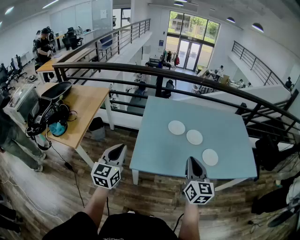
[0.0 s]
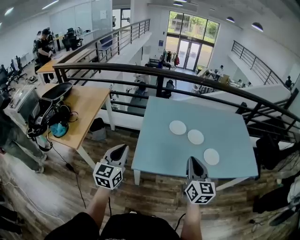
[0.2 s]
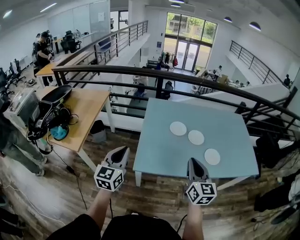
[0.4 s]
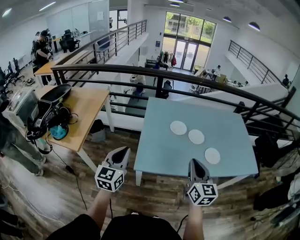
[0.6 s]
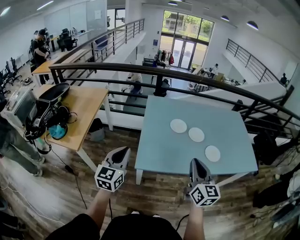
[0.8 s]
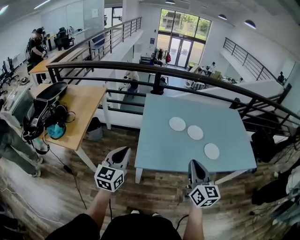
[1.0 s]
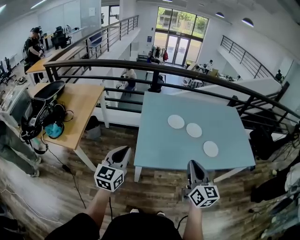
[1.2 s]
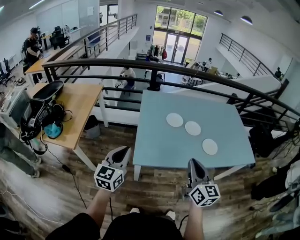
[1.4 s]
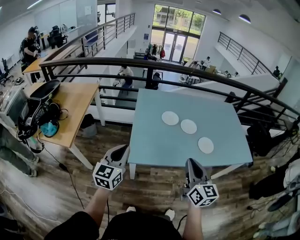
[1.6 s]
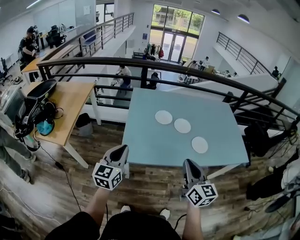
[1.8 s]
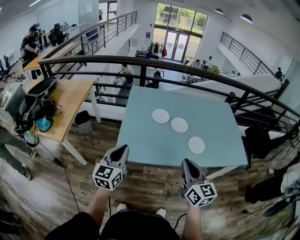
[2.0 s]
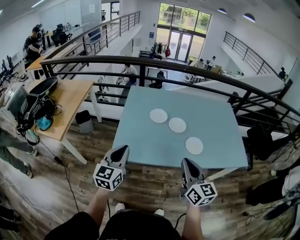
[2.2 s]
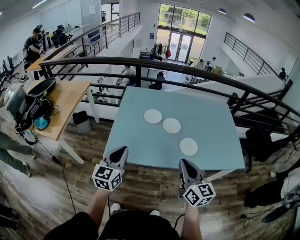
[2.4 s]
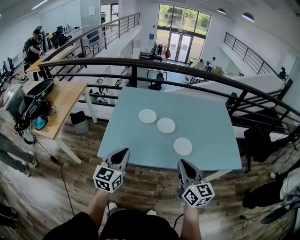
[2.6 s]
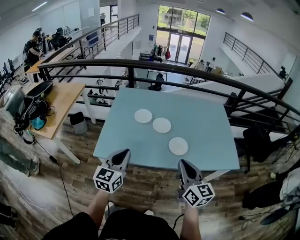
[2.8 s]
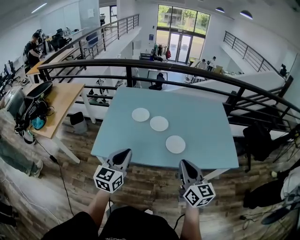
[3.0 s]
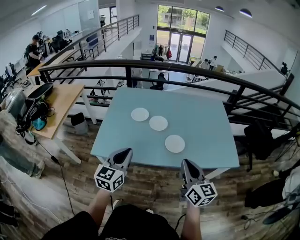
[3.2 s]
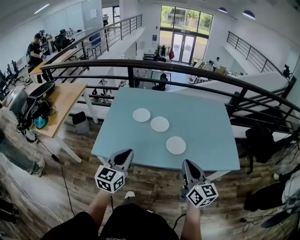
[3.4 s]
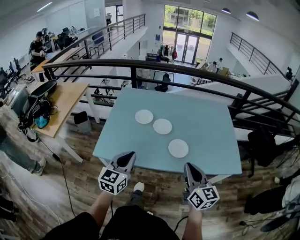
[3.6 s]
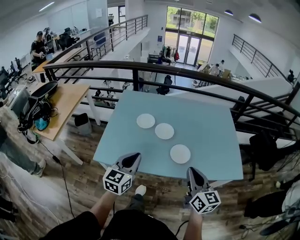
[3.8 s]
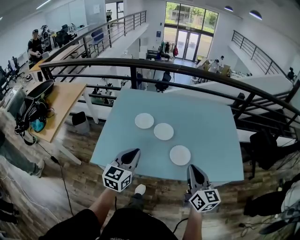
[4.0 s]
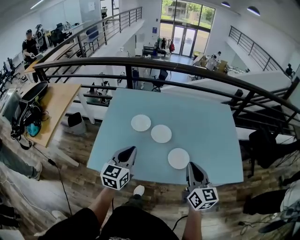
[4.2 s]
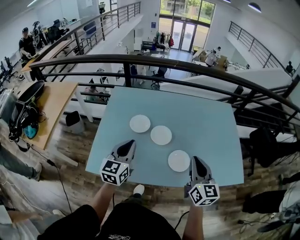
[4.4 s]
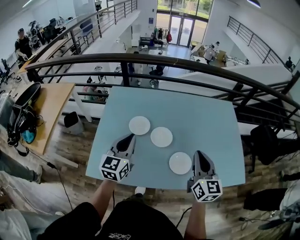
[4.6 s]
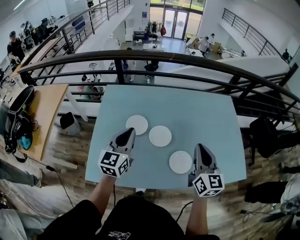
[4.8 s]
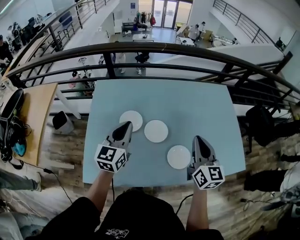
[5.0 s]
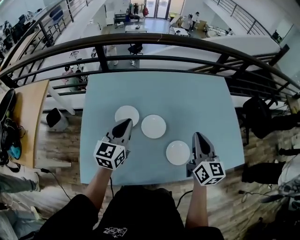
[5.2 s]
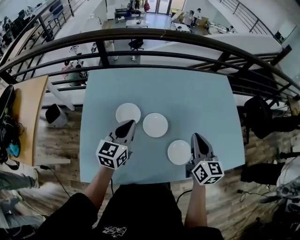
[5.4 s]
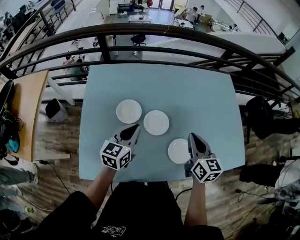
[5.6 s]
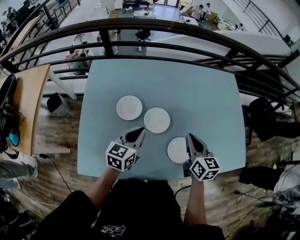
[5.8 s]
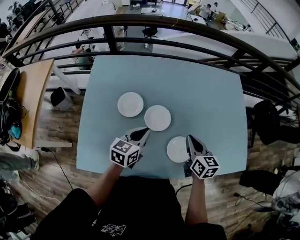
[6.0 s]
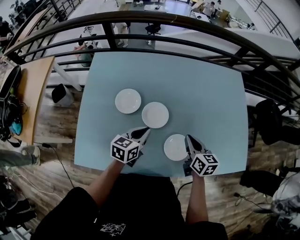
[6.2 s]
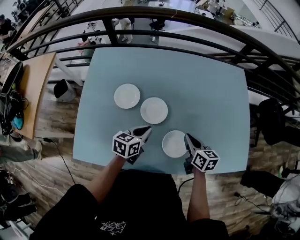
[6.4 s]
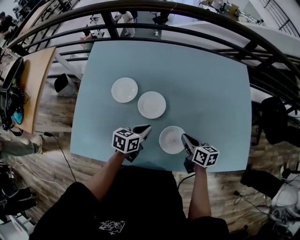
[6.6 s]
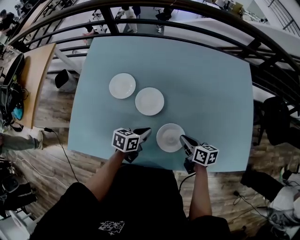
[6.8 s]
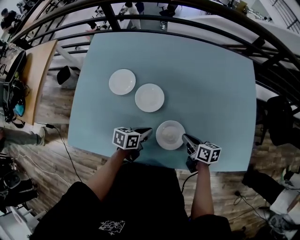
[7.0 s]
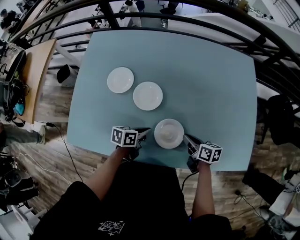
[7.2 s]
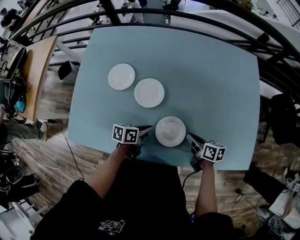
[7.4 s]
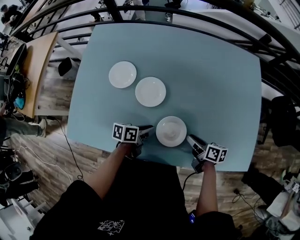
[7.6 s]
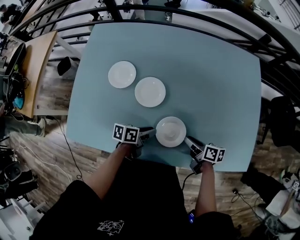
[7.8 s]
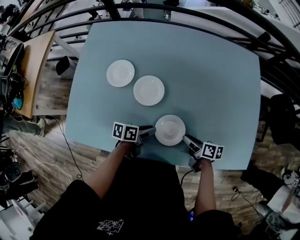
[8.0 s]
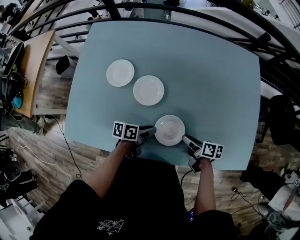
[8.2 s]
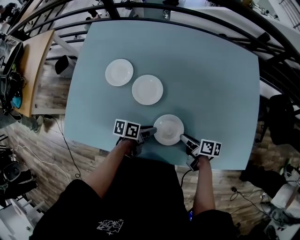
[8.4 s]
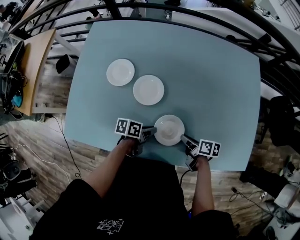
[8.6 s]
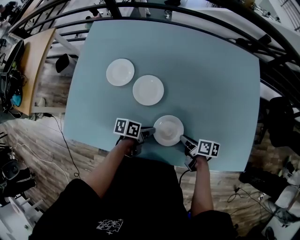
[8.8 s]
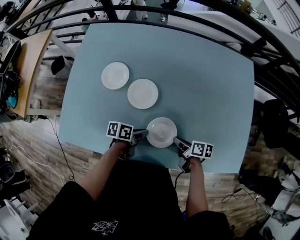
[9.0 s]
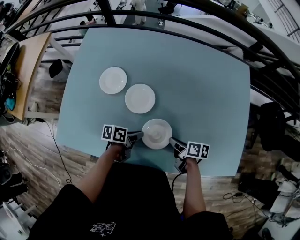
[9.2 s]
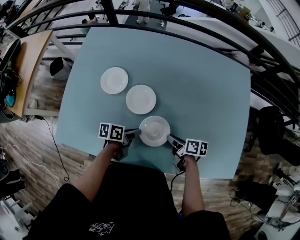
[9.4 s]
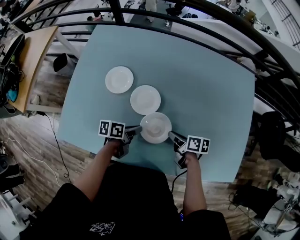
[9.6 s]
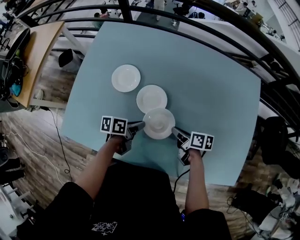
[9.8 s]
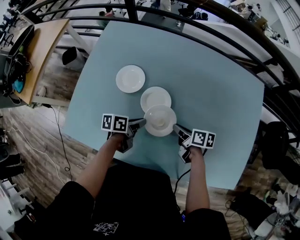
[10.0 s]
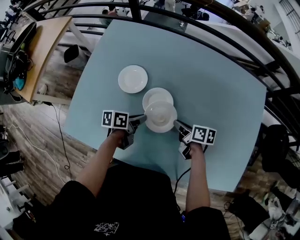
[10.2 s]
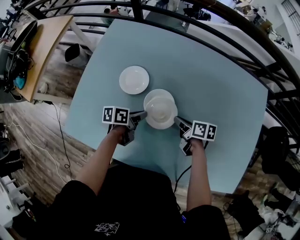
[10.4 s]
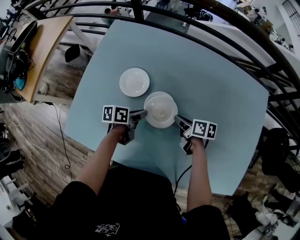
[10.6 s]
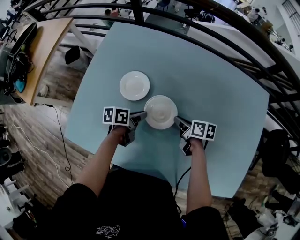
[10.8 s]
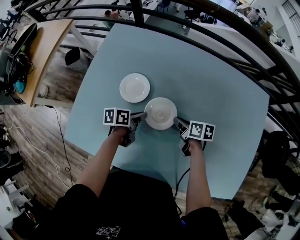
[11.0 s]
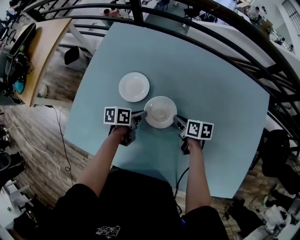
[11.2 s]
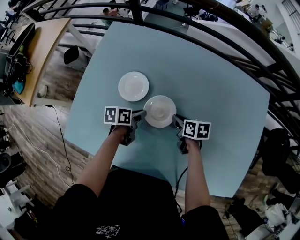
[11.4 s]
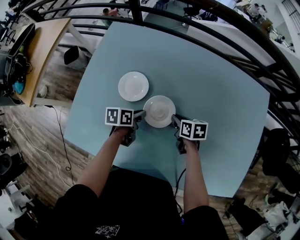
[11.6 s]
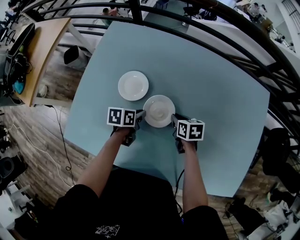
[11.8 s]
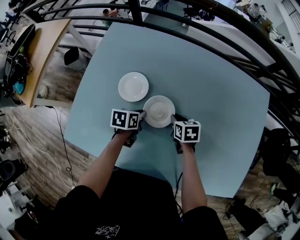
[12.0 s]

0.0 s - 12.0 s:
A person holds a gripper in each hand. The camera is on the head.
0.0 s - 1.6 s: The right gripper shifts approximately 5 cm backward.
1.6 s - 3.0 s: The two grippers go roughly 30 cm to the right.
3.0 s - 4.4 s: The grippers both shift forward by some 20 cm.
4.4 s - 6.0 s: The left gripper shifts approximately 25 cm downward, forward and to the right, and changes its angle by roughly 30 degrees, while the right gripper shifts some 25 cm downward and forward, and rotates some 30 degrees.
6.0 s - 7.6 s: Both grippers move downward and to the right, approximately 20 cm. The right gripper rotates about 40 degrees, and opens its fingers; the left gripper changes its angle by approximately 40 degrees.
7.6 s - 9.0 s: The grippers move only a little.
9.0 s - 10.4 s: The right gripper moves approximately 20 cm. Meanwhile the left gripper shifts by approximately 15 cm.
10.4 s - 12.0 s: The left gripper rotates about 20 degrees; the right gripper changes place by roughly 5 cm, and changes its angle by about 30 degrees.

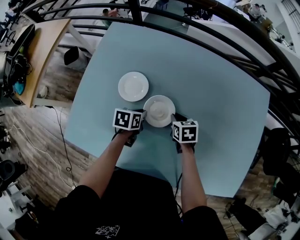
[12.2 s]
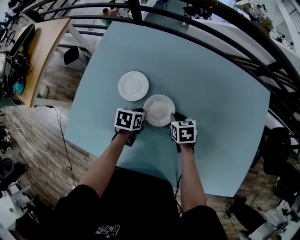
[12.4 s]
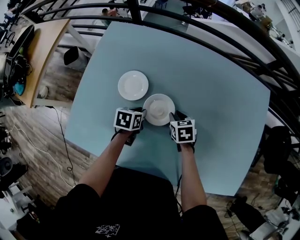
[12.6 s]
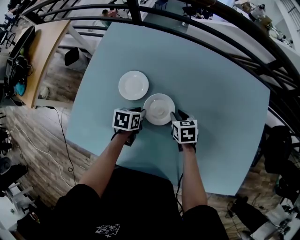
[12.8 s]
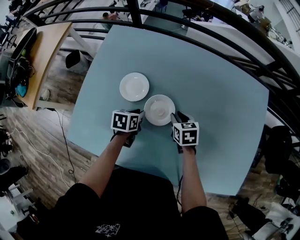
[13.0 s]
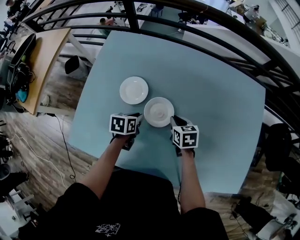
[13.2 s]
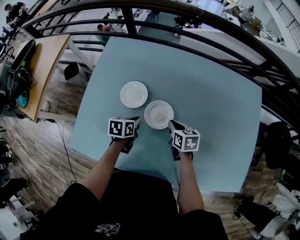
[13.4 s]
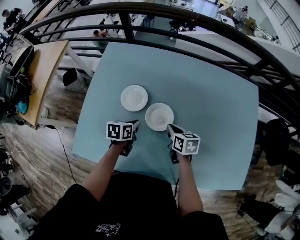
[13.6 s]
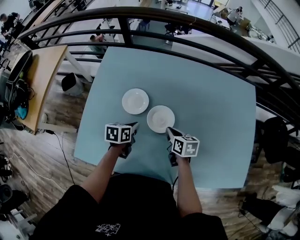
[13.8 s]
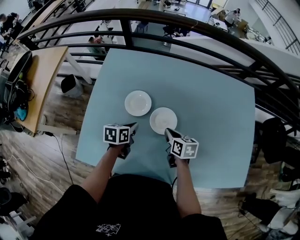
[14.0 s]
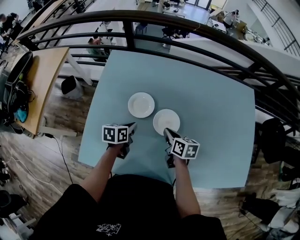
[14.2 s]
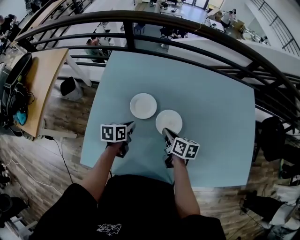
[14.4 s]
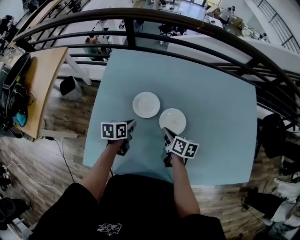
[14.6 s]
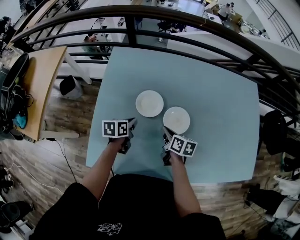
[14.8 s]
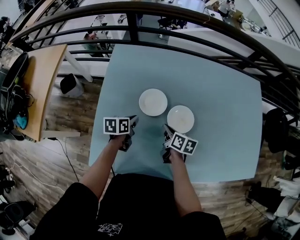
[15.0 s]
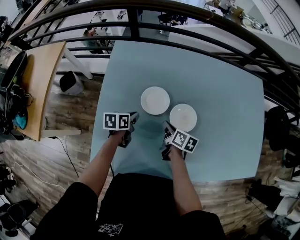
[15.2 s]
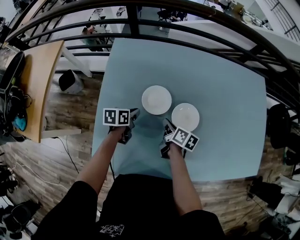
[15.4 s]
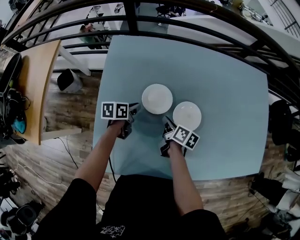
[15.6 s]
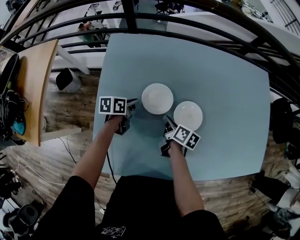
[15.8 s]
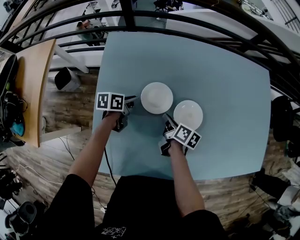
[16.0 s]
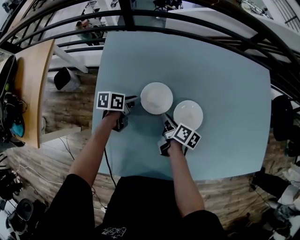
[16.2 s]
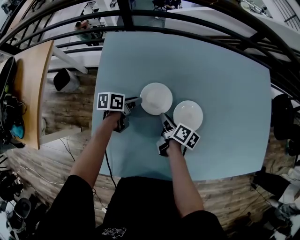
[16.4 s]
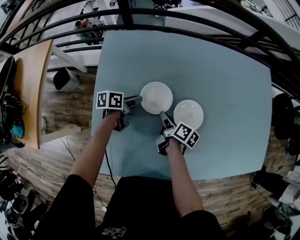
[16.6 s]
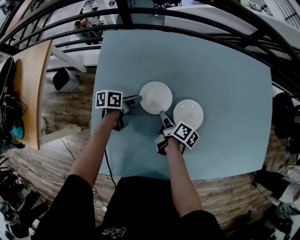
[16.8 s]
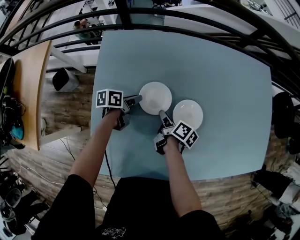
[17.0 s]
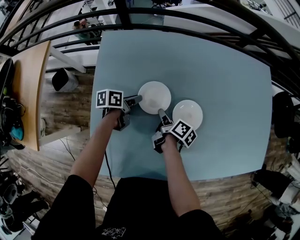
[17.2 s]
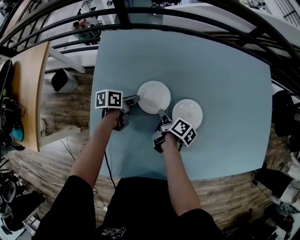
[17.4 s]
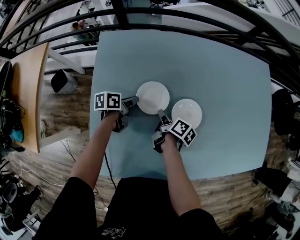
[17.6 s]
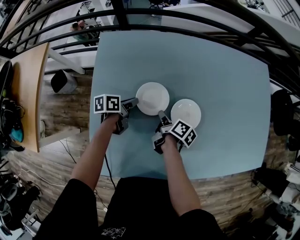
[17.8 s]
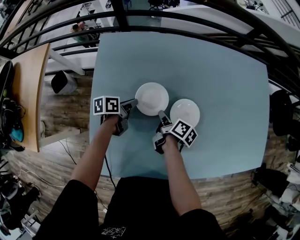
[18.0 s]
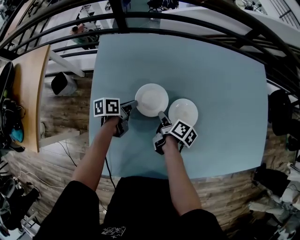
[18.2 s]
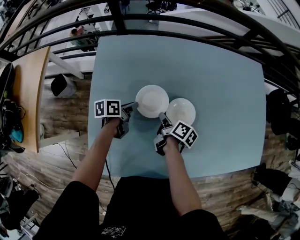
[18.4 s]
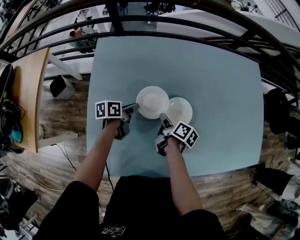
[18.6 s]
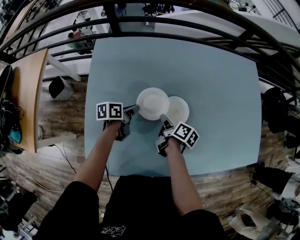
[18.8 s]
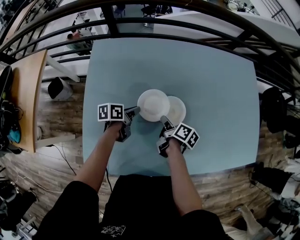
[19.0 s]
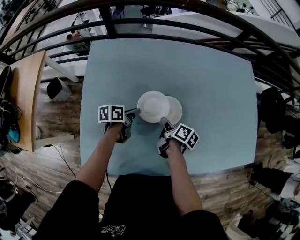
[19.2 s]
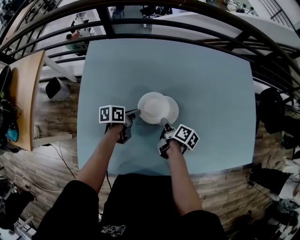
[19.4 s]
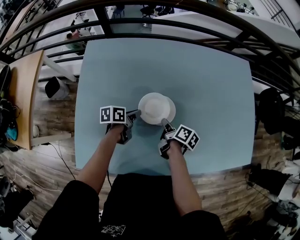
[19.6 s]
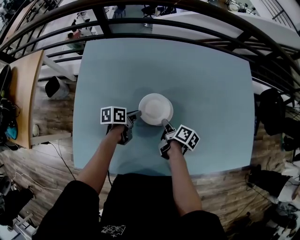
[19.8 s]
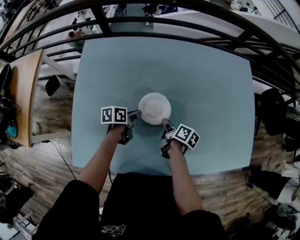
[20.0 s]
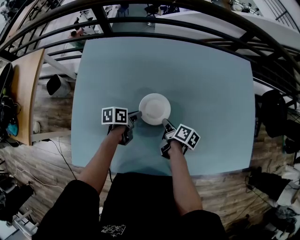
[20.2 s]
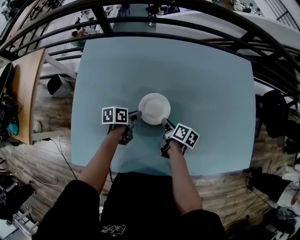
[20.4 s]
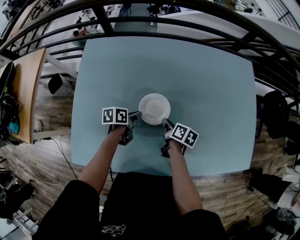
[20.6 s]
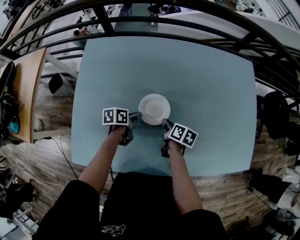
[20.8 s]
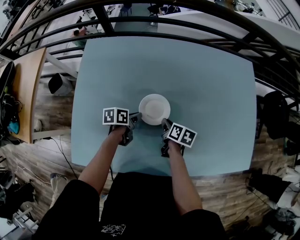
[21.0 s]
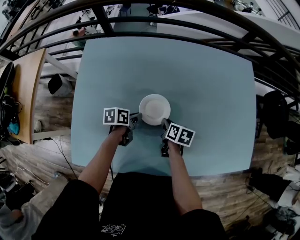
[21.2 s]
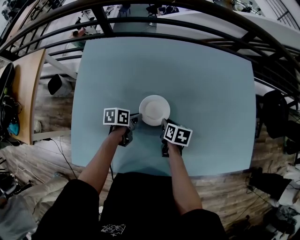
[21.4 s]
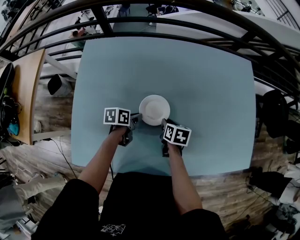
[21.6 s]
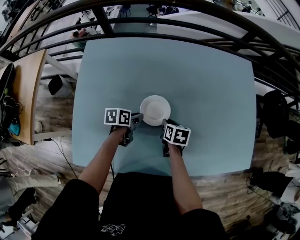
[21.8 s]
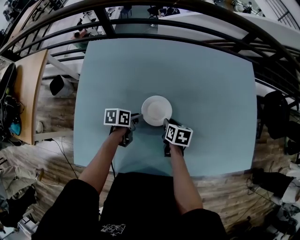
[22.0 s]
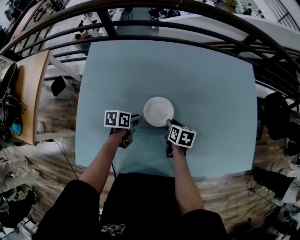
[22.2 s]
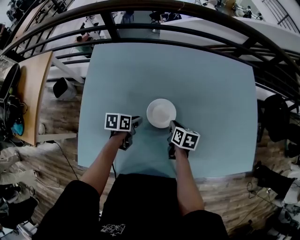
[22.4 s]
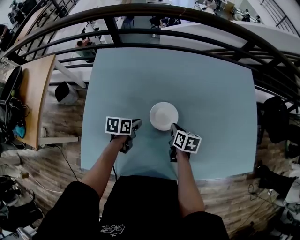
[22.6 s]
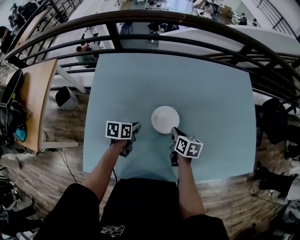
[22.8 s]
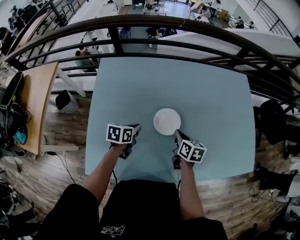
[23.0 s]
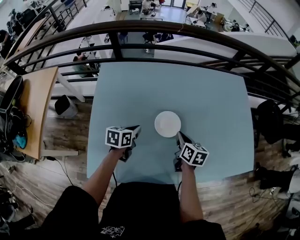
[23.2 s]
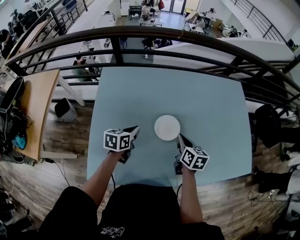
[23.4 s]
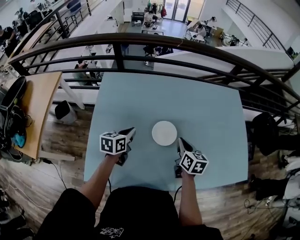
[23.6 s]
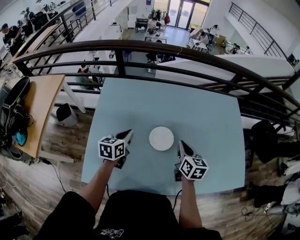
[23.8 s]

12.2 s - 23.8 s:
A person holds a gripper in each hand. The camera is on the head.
12.2 s - 13.6 s: The grippers both shift upward by roughly 5 cm.
13.6 s - 15.0 s: Both grippers travel together to the left, roughly 15 cm. The right gripper changes its angle by about 20 degrees.
15.0 s - 16.6 s: The left gripper travels forward by about 10 cm, and opens its fingers. The right gripper ends up roughly 10 cm from where it was, changes its angle by roughly 20 degrees, and opens.
16.6 s - 18.0 s: The grippers move only a little.
18.0 s - 19.4 s: The grippers both shift to the right by some 15 cm.
19.4 s - 21.0 s: Both grippers travel together to the right, some 5 cm. The right gripper rotates about 20 degrees.
21.0 s - 22.4 s: There are only small adjustments of the grippers.
22.4 s - 23.8 s: The grippers both shift upward by about 20 cm. The left gripper swivels roughly 30 degrees. The right gripper changes its angle by some 30 degrees.
